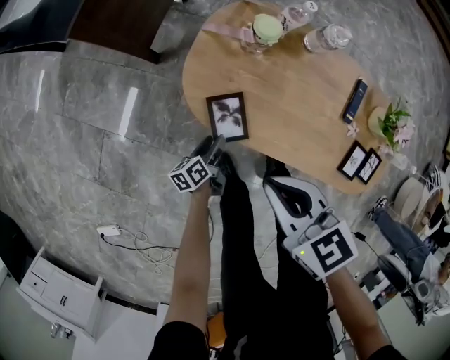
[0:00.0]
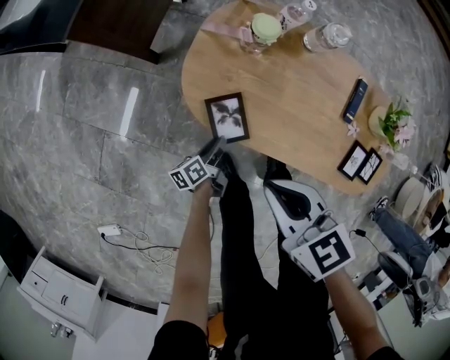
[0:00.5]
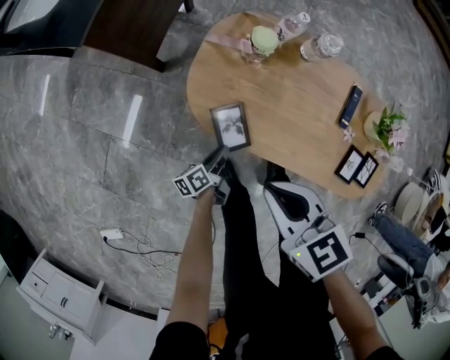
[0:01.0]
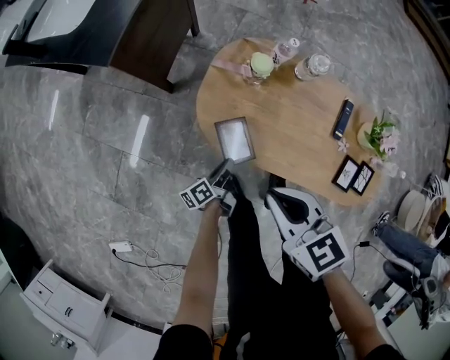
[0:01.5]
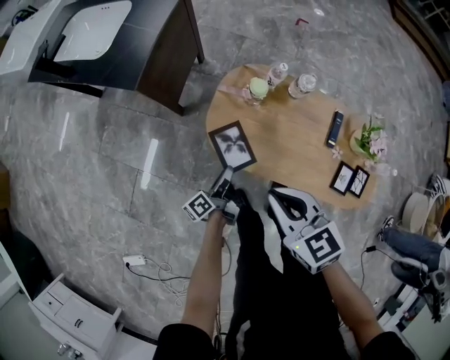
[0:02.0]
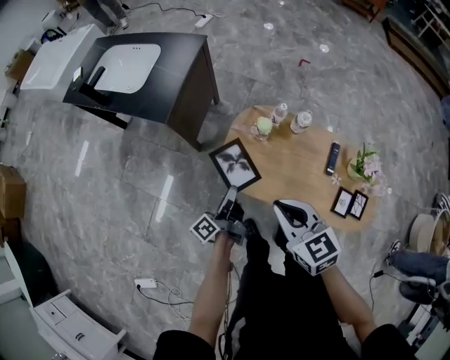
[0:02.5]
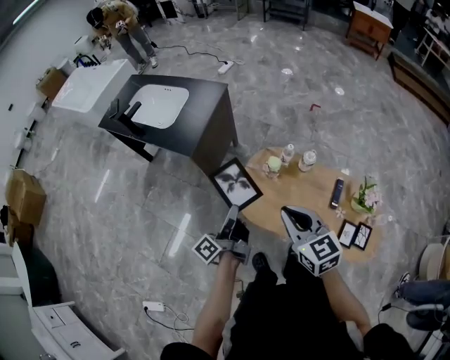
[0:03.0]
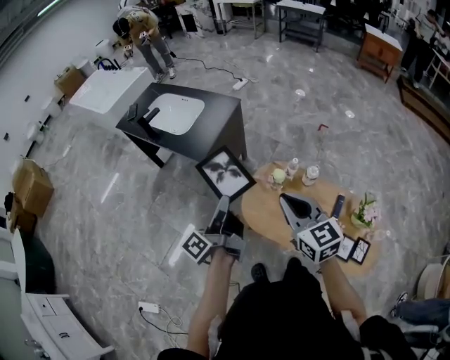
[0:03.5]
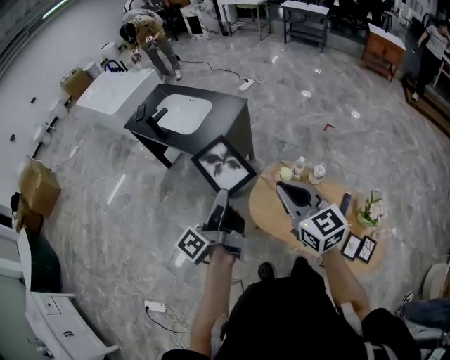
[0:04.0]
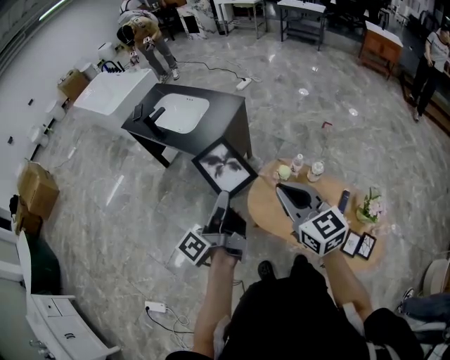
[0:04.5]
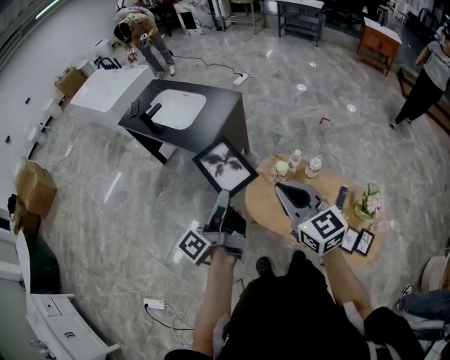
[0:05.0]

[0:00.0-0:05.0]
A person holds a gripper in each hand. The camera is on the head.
0:00.0 to 0:02.5: The right gripper is displaced upward by about 20 cm. The left gripper is displaced upward by roughly 35 cm, angles its fingers upward, by some 30 degrees, and closes up.
0:02.5 to 0:05.0: The right gripper goes roughly 15 cm upward, and rotates about 20 degrees, while the left gripper moves upward, approximately 30 cm.

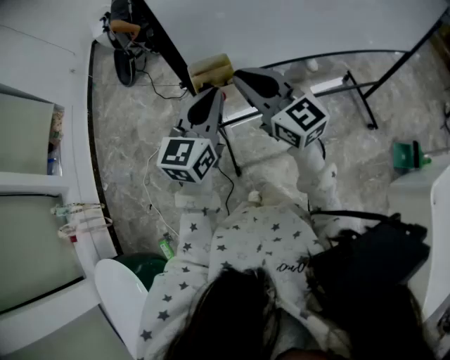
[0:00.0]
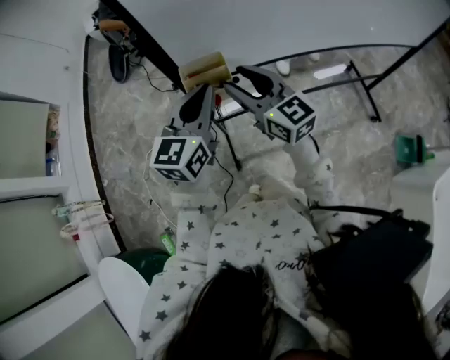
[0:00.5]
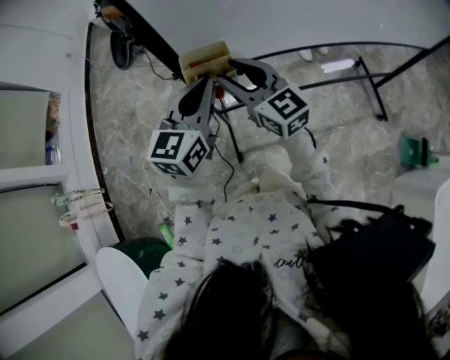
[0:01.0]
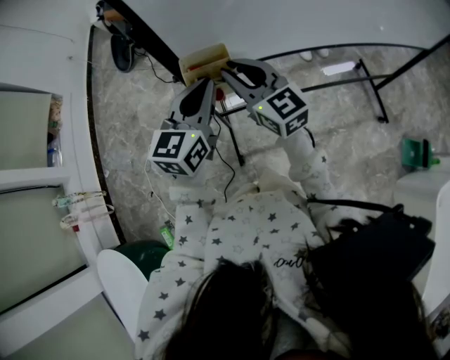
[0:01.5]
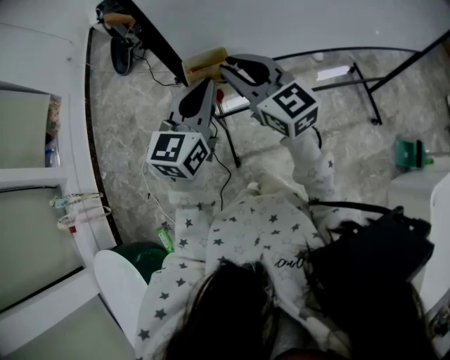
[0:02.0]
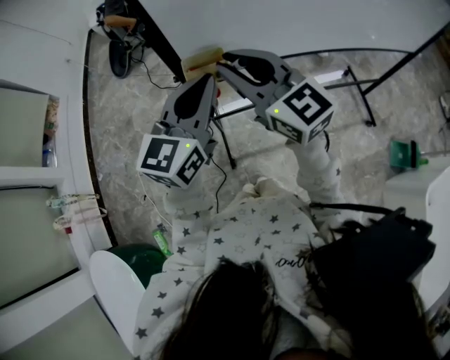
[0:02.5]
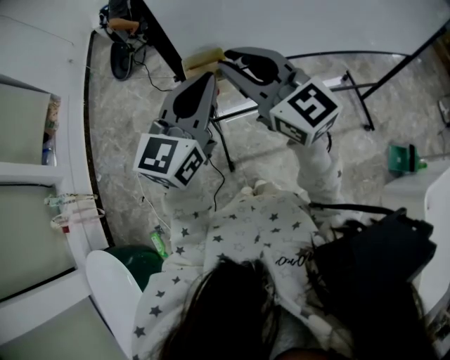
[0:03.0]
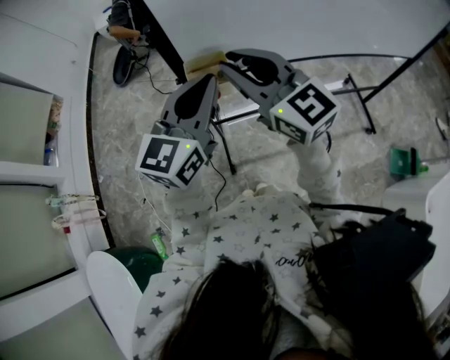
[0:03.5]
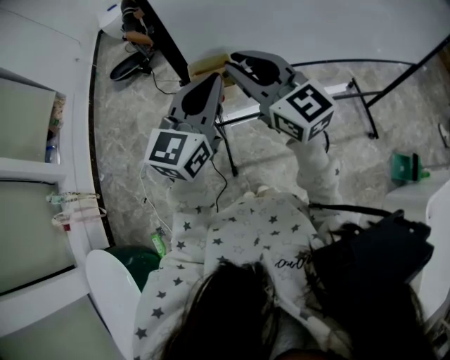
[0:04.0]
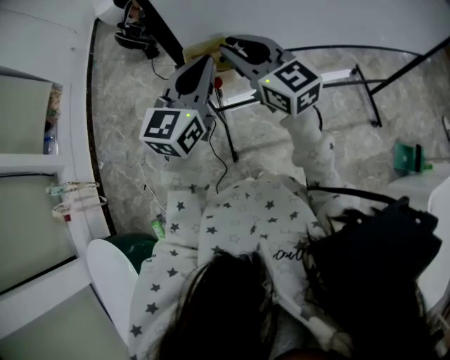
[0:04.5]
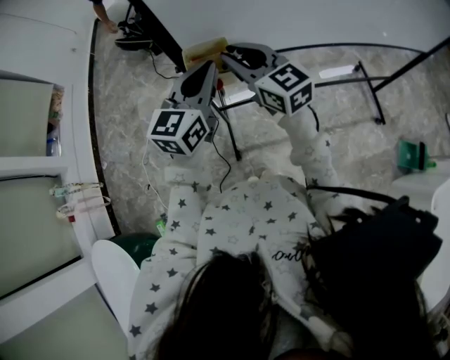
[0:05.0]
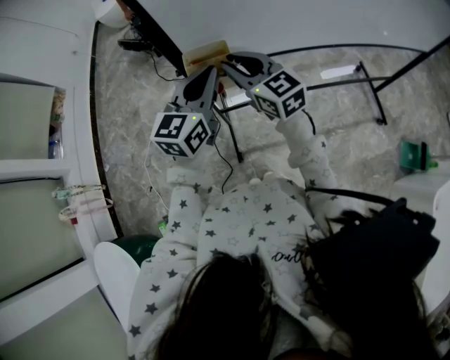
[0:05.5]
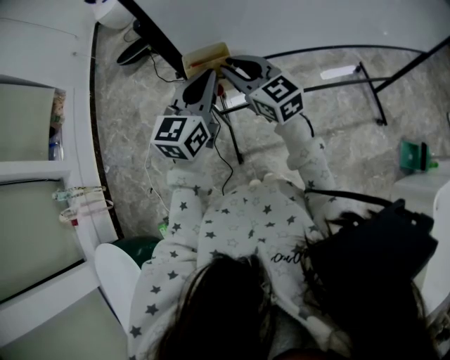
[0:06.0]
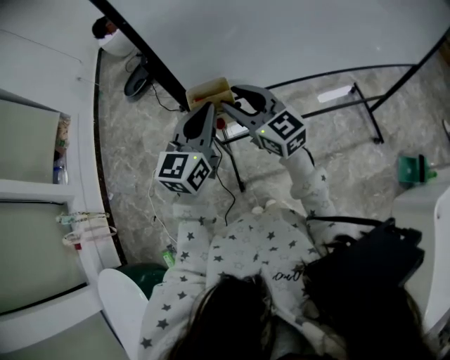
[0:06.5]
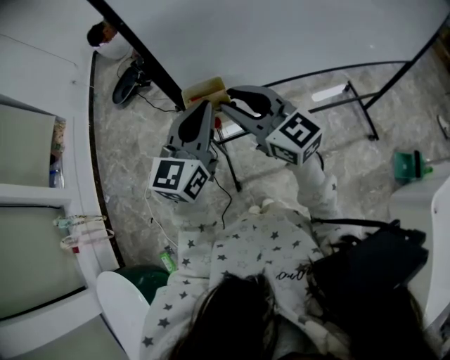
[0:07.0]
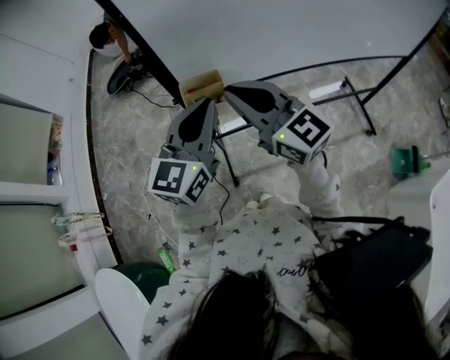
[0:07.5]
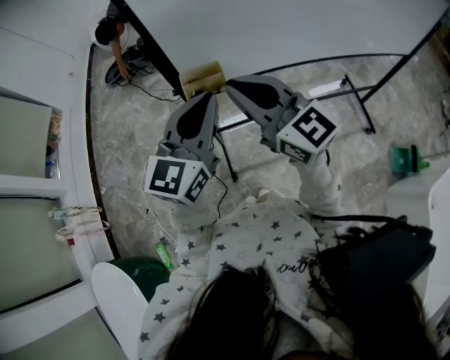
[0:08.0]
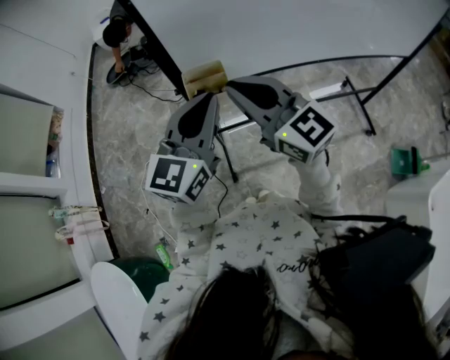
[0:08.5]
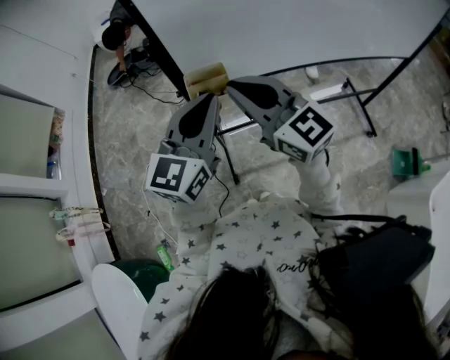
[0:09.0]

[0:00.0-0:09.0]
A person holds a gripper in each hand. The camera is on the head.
0:00.0 to 0:02.0: The right gripper opens, then closes again.
0:04.5 to 0:07.0: The right gripper goes downward and returns, roughly 5 cm each way.
0:07.0 to 0:09.0: The right gripper closes.

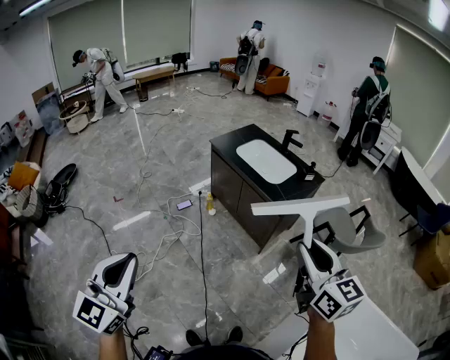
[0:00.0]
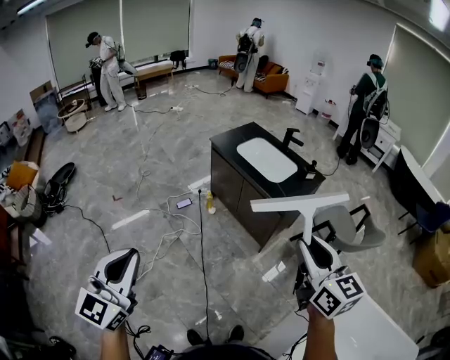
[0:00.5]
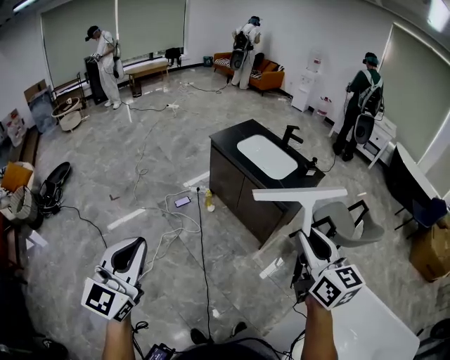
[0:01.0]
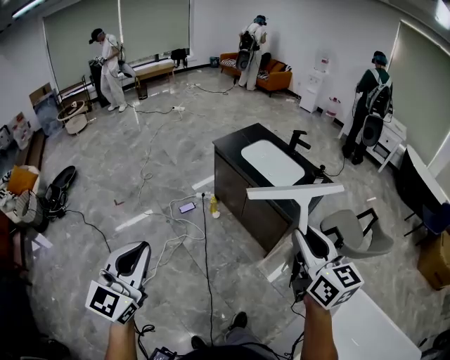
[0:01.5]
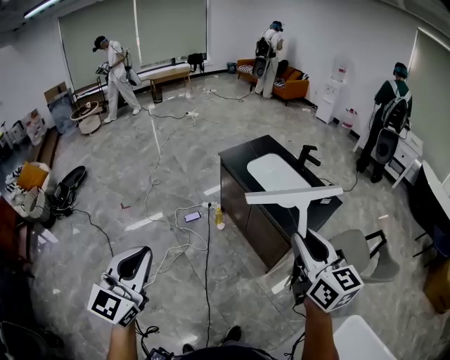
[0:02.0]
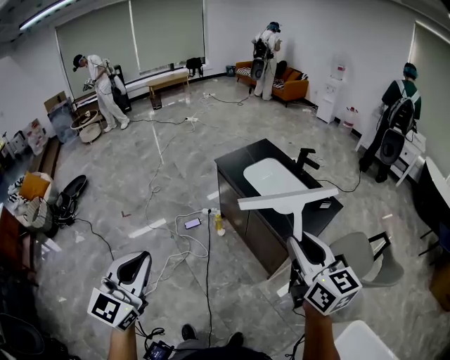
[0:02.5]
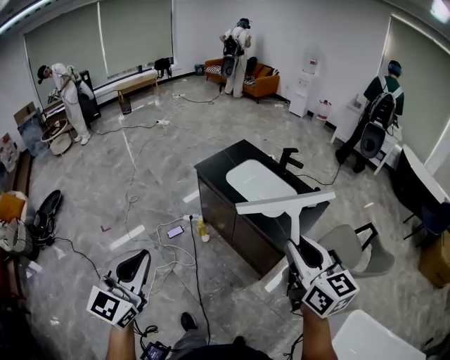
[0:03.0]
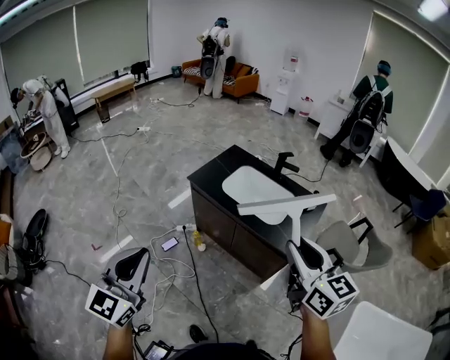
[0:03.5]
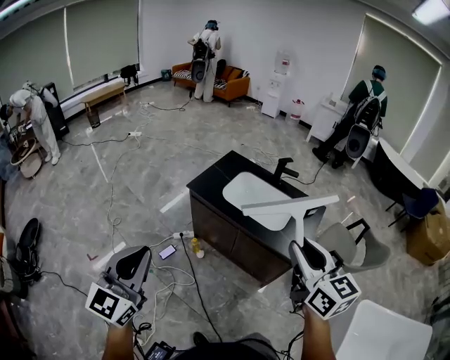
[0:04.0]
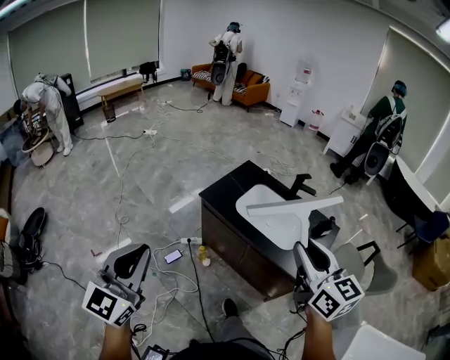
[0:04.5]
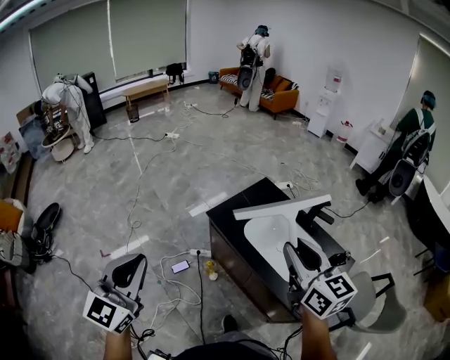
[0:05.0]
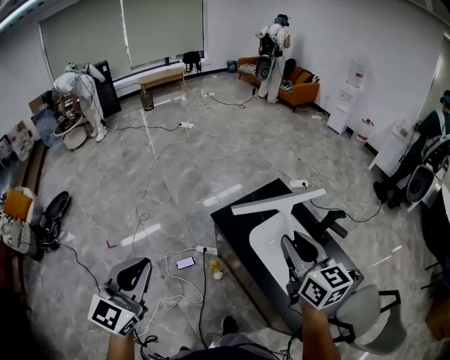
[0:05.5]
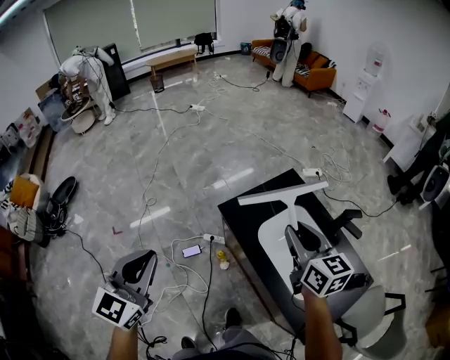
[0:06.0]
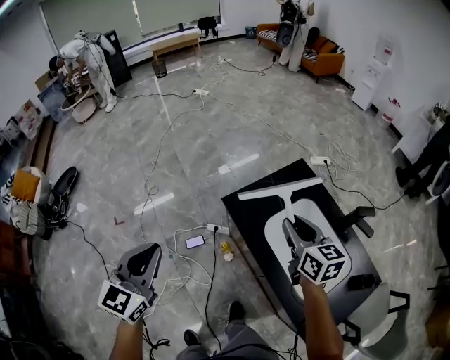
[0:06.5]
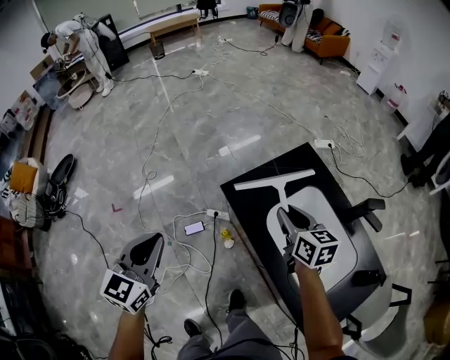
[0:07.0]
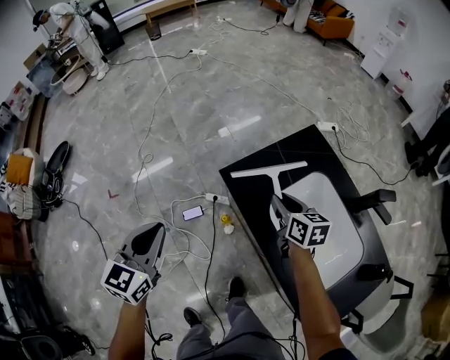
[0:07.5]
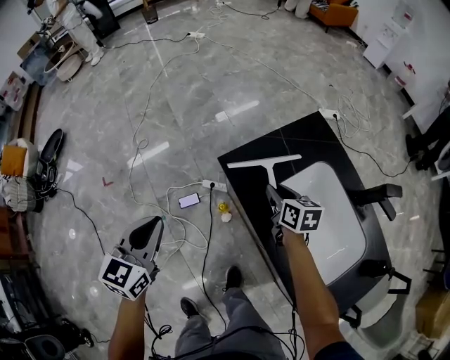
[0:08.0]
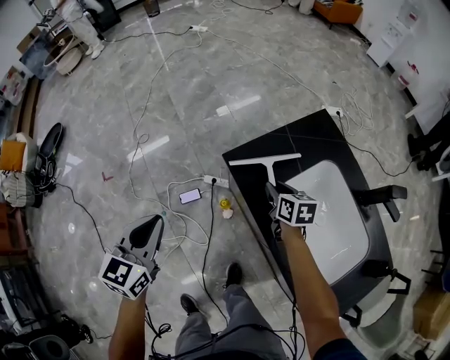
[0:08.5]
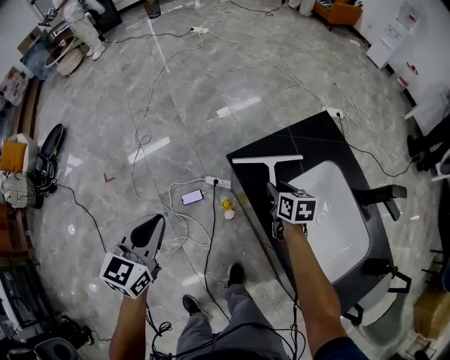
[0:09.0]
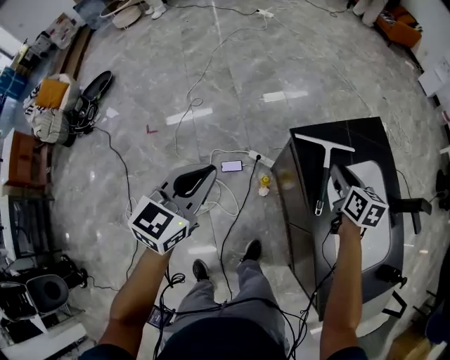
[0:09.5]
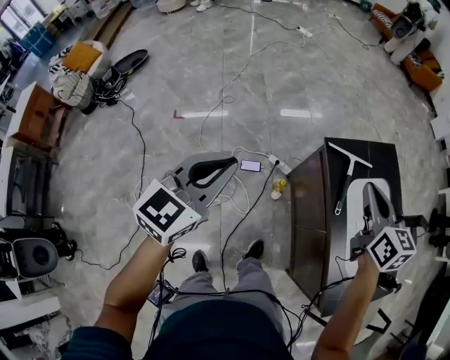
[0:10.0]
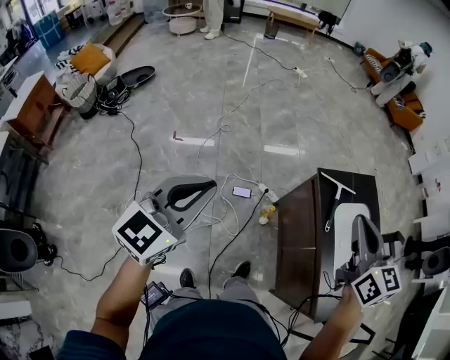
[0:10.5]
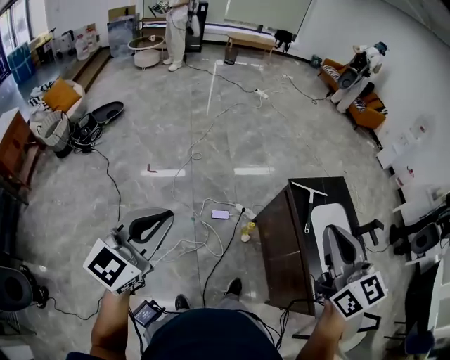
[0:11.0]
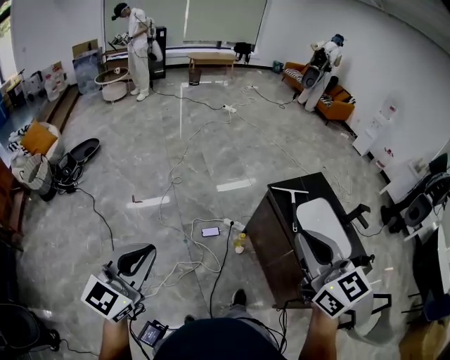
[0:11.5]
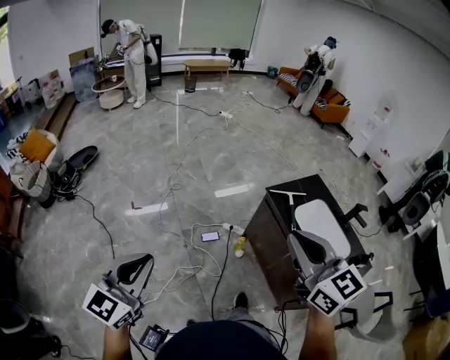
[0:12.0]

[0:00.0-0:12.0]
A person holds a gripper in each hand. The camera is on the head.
0:00.0 to 0:02.0: The two grippers go approximately 25 cm forward.
0:02.0 to 0:04.0: The left gripper heads forward and to the left, covering approximately 35 cm, and swivels approximately 20 degrees. Meanwhile the right gripper is displaced forward and to the left by approximately 25 cm.
0:04.0 to 0:06.0: The left gripper goes approximately 35 cm forward, and swivels some 30 degrees. Meanwhile the right gripper heads forward, covering about 50 cm, and turns by about 30 degrees.
0:06.0 to 0:08.0: Both grippers move downward and forward, some 35 cm. The left gripper swivels approximately 20 degrees, while the right gripper rotates roughly 30 degrees.
0:08.0 to 0:10.0: The left gripper shifts some 30 cm to the left, backward and upward; the right gripper is displaced upward, backward and to the left by about 40 cm, rotates roughly 30 degrees, and closes up.
0:10.0 to 0:12.0: The right gripper shifts about 50 cm backward, upward and to the left, and changes its angle by approximately 20 degrees. Meanwhile the left gripper travels backward, to the left and upward by about 40 cm.

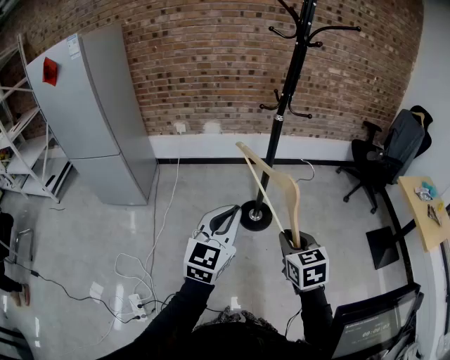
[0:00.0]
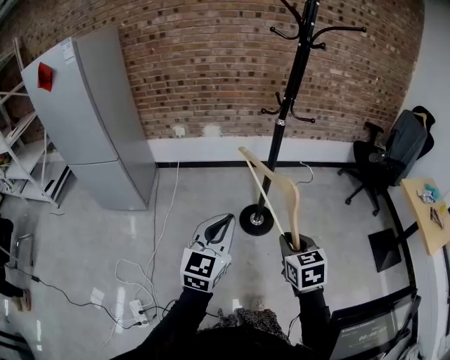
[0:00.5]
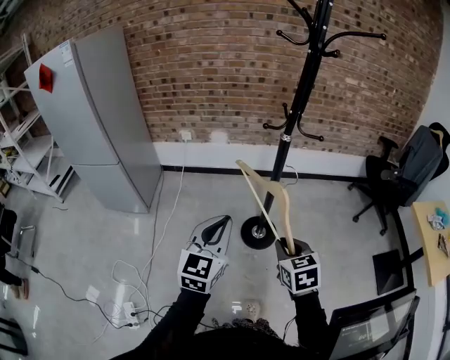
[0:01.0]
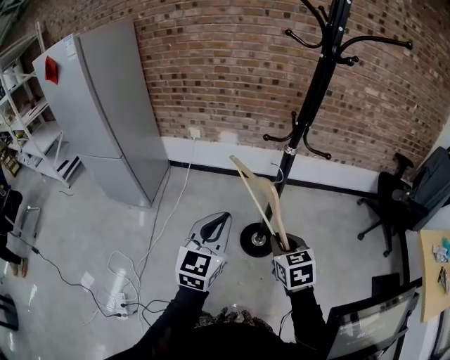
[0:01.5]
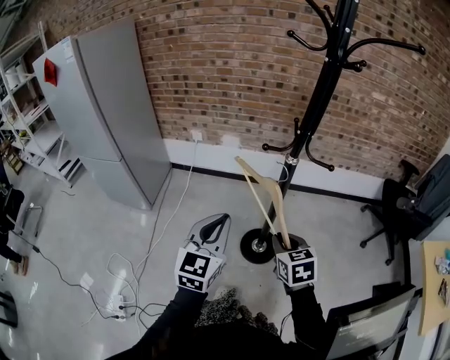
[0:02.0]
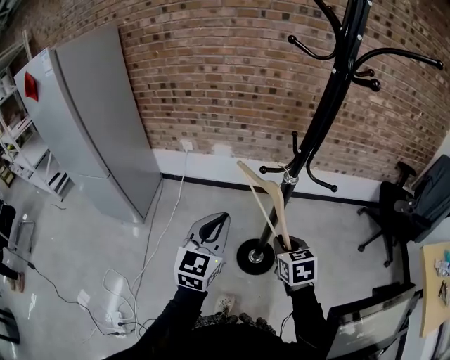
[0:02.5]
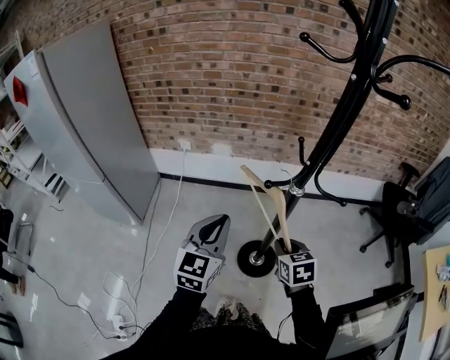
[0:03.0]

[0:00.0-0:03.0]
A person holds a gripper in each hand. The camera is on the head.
0:00.0 to 0:01.5: Both grippers travel together forward, roughly 20 cm.
0:01.5 to 0:03.0: The two grippers go approximately 20 cm forward.
